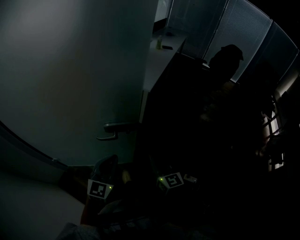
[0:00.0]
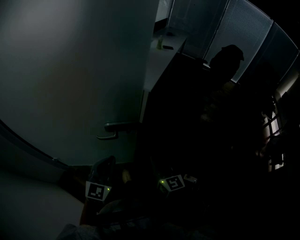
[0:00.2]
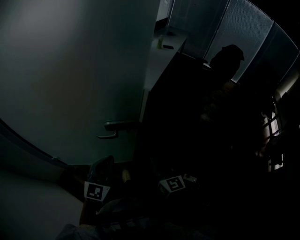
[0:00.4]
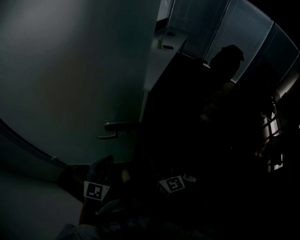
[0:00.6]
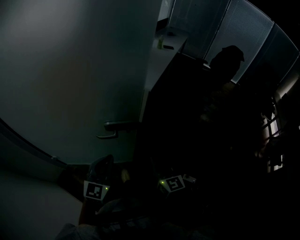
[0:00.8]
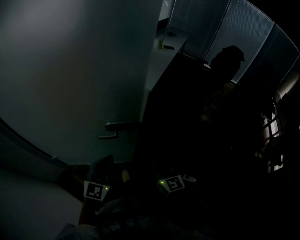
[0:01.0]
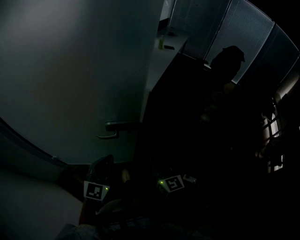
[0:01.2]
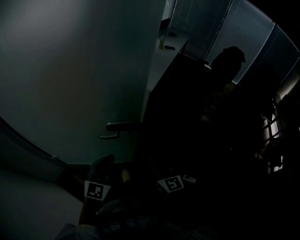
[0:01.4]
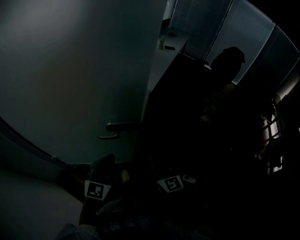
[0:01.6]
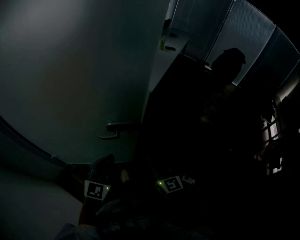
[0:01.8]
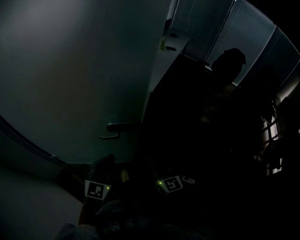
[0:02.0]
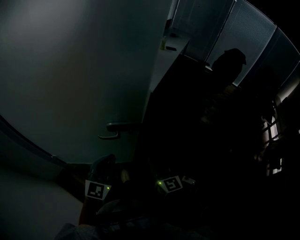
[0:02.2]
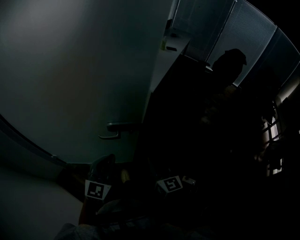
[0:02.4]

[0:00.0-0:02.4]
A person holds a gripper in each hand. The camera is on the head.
0:00.0 to 0:01.2: The grippers stay close to where they were, moving slightly.
0:01.2 to 0:02.4: The two grippers keep their place.

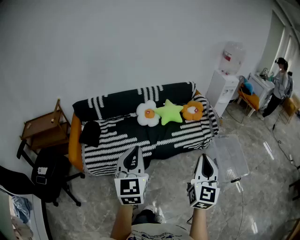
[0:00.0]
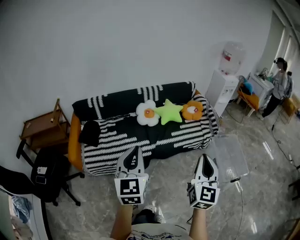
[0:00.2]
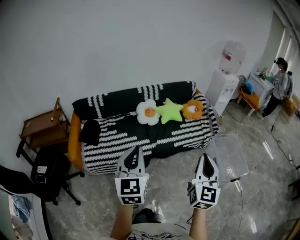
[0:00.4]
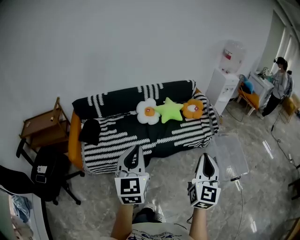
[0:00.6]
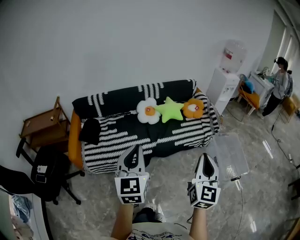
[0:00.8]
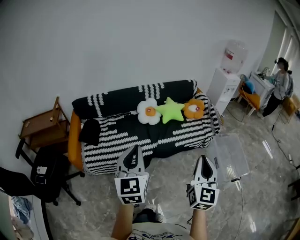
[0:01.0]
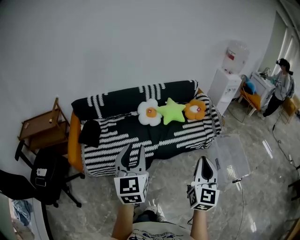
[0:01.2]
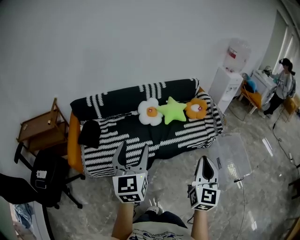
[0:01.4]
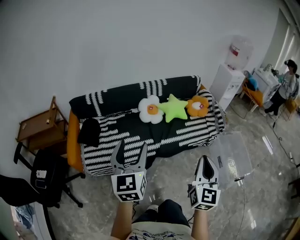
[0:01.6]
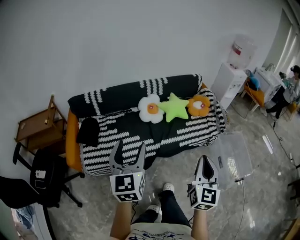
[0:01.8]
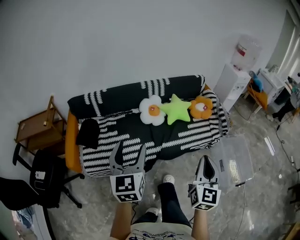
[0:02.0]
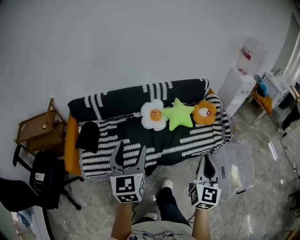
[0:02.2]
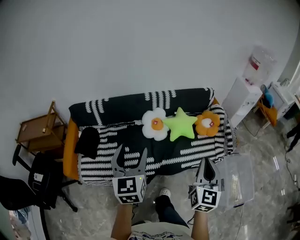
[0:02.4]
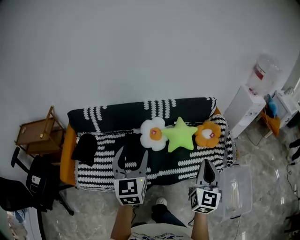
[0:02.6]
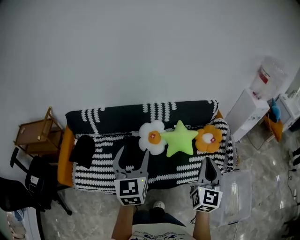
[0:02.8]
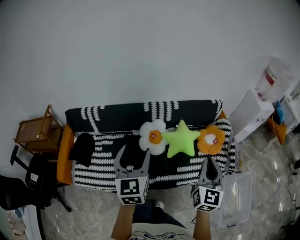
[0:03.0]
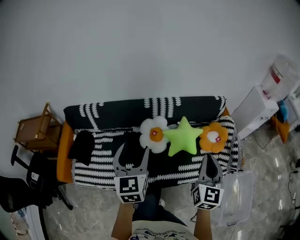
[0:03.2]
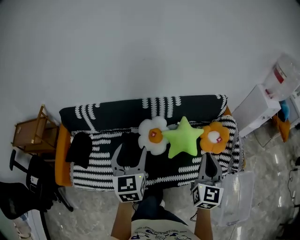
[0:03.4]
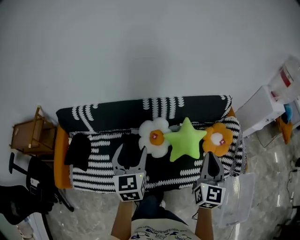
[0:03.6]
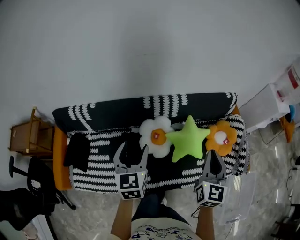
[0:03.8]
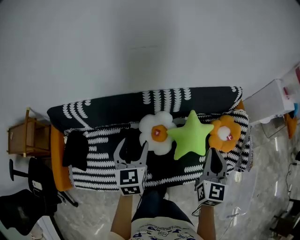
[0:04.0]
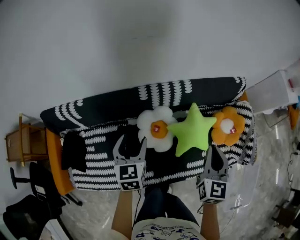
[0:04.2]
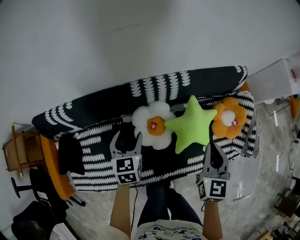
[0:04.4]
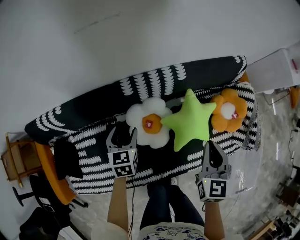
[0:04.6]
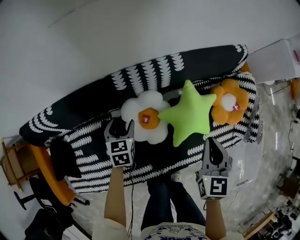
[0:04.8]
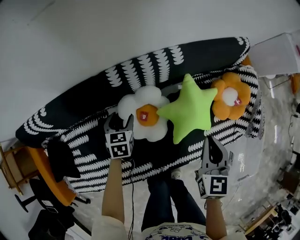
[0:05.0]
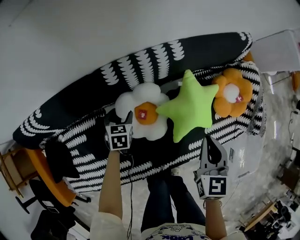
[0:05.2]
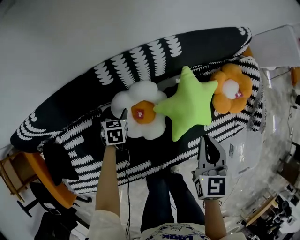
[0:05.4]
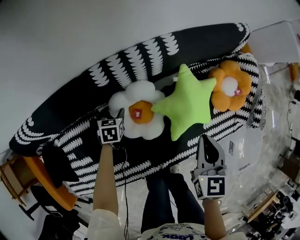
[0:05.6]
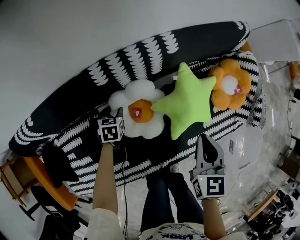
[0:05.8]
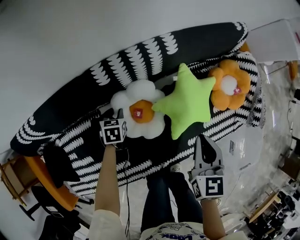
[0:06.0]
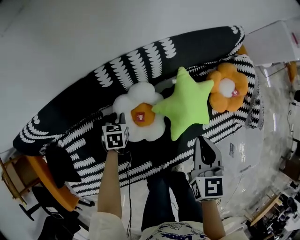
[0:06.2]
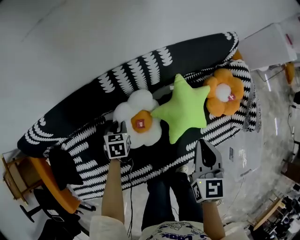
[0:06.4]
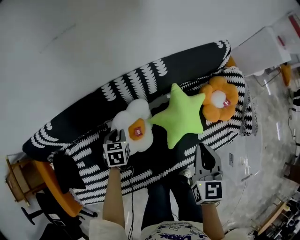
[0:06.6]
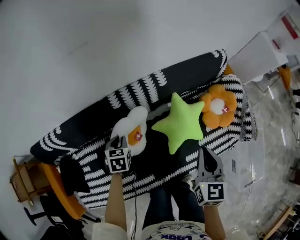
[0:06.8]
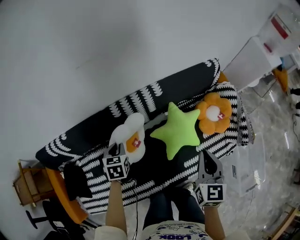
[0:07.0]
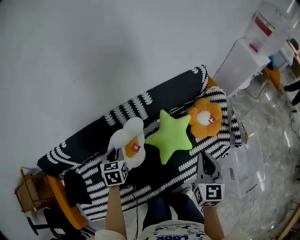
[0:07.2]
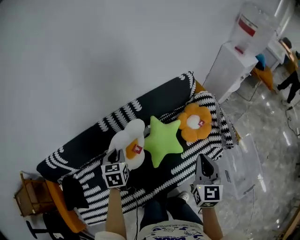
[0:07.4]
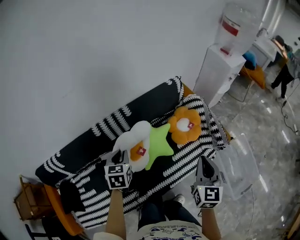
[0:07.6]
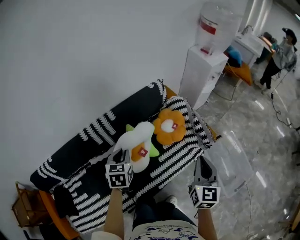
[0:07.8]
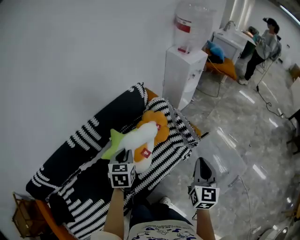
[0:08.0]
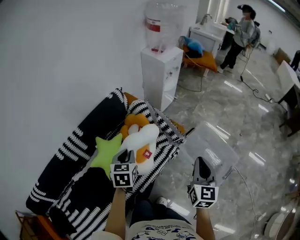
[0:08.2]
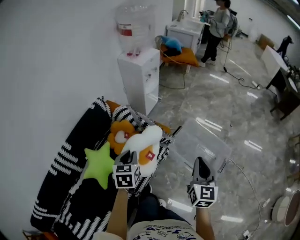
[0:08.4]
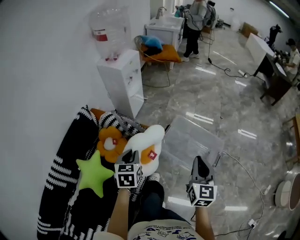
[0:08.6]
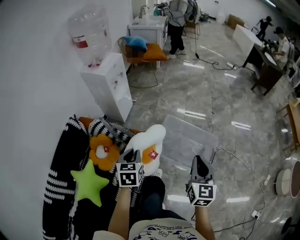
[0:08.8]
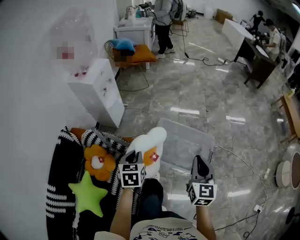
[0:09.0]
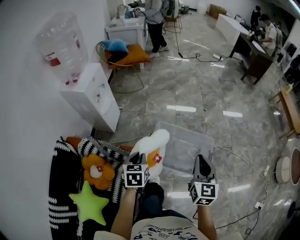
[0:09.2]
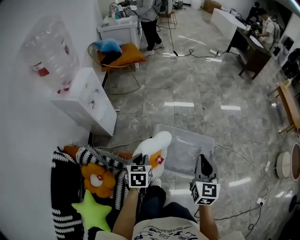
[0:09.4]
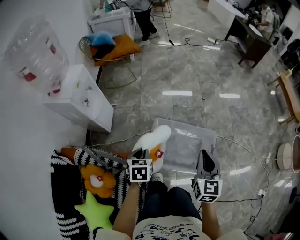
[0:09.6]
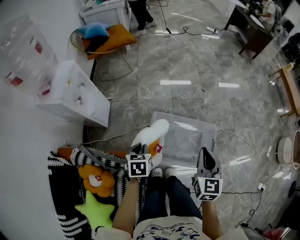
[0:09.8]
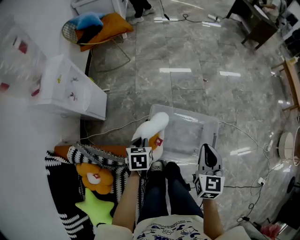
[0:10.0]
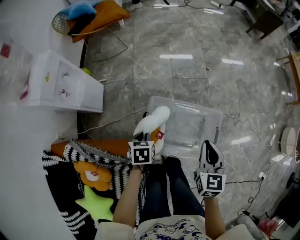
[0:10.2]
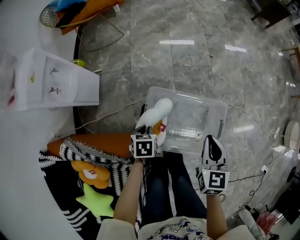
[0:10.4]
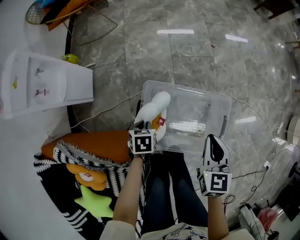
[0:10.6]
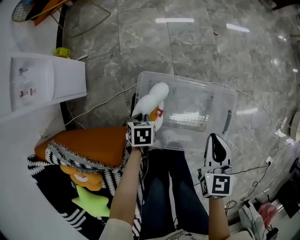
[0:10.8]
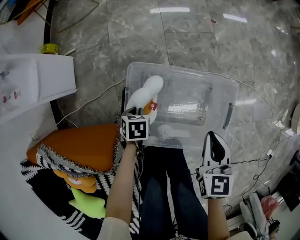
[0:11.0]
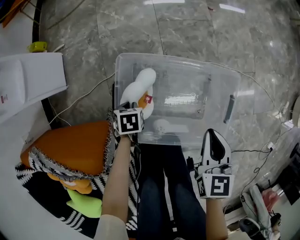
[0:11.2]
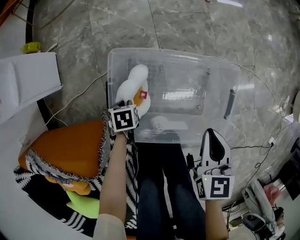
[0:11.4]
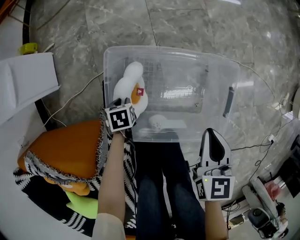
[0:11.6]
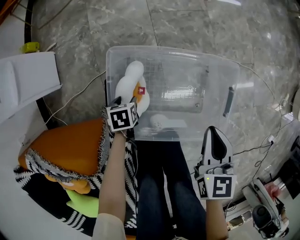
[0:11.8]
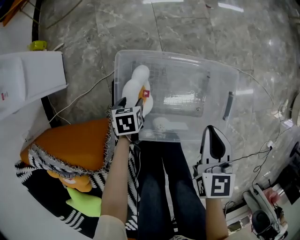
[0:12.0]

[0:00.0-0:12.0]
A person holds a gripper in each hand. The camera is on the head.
0:00.0 to 0:01.6: Both grippers travel together forward and to the left, roughly 10 cm. The left gripper opens its fingers.
0:01.6 to 0:03.0: The two grippers go approximately 40 cm forward.
0:03.0 to 0:04.4: Both grippers move forward and downward, some 40 cm. The left gripper changes its angle by approximately 30 degrees. The right gripper swivels about 20 degrees.
0:04.4 to 0:06.0: The left gripper is displaced downward by about 30 cm, turns by approximately 30 degrees, and closes its fingers. The right gripper travels downward by some 15 cm.
0:06.0 to 0:07.6: The left gripper goes some 50 cm upward and to the right, and rotates about 30 degrees. The right gripper goes some 40 cm to the right, upward and backward, and changes its angle by roughly 30 degrees.
0:07.6 to 0:09.0: Both grippers are carried approximately 60 cm. The left gripper changes its angle by some 50 degrees; the right gripper rotates some 50 degrees.
0:09.0 to 0:10.4: The grippers both shift forward and downward by some 40 cm. The right gripper changes its angle by roughly 20 degrees. The left gripper turns by about 30 degrees.
0:10.4 to 0:12.0: The two grippers go roughly 25 cm downward. The left gripper opens.

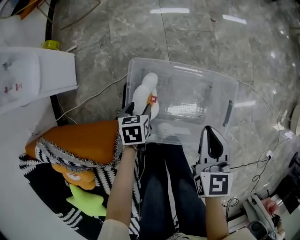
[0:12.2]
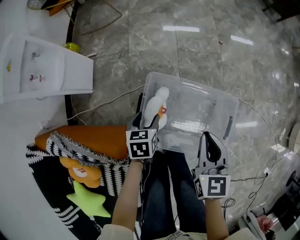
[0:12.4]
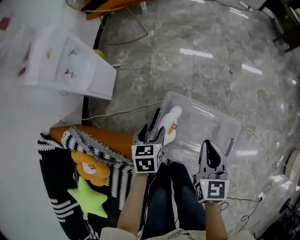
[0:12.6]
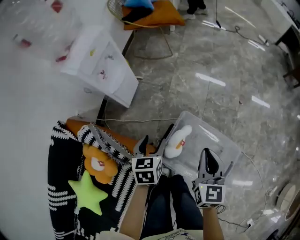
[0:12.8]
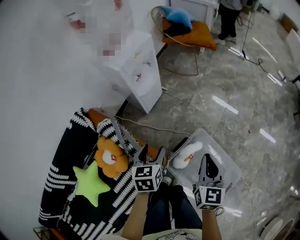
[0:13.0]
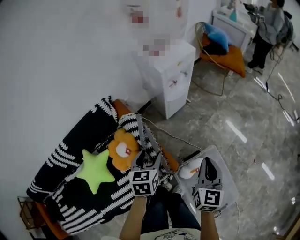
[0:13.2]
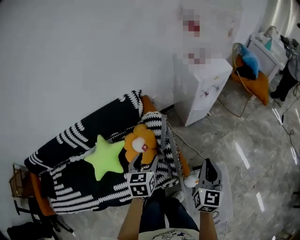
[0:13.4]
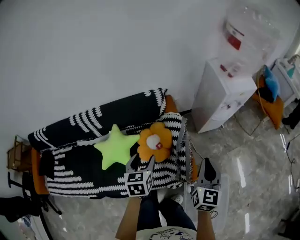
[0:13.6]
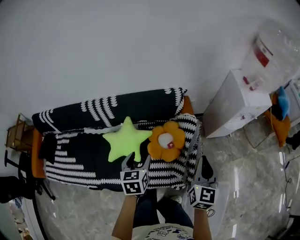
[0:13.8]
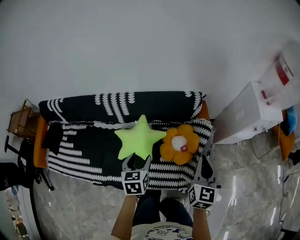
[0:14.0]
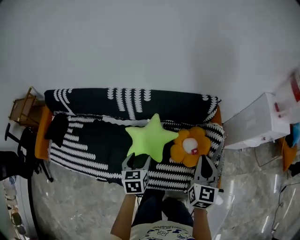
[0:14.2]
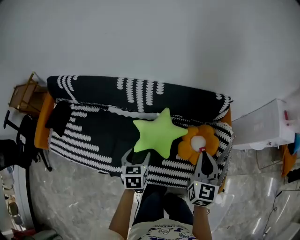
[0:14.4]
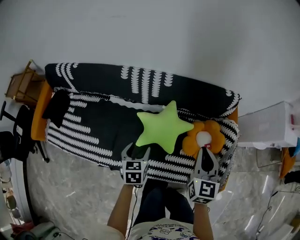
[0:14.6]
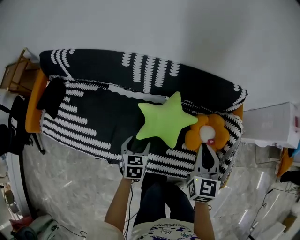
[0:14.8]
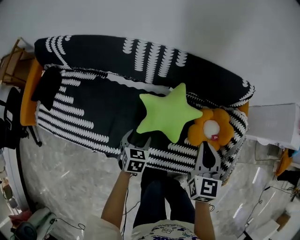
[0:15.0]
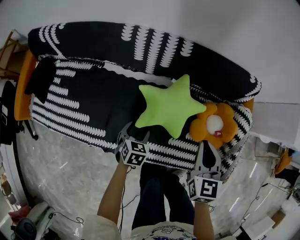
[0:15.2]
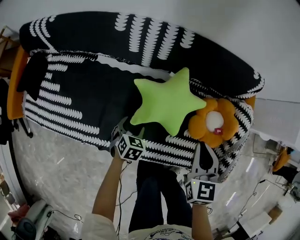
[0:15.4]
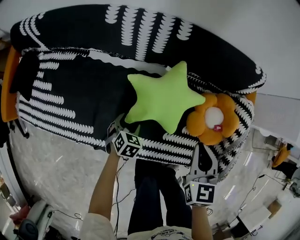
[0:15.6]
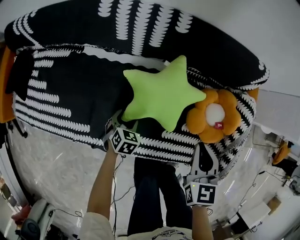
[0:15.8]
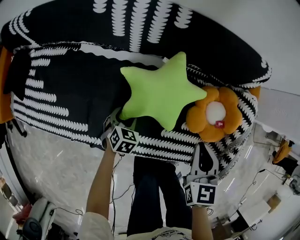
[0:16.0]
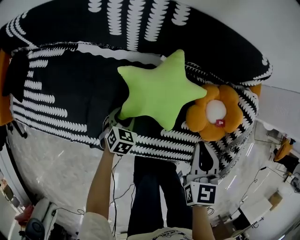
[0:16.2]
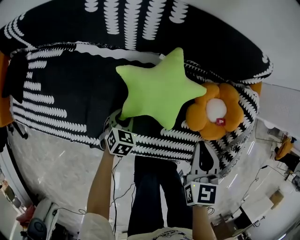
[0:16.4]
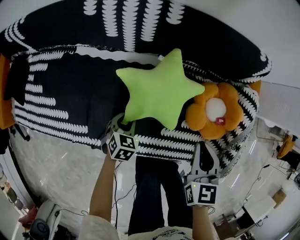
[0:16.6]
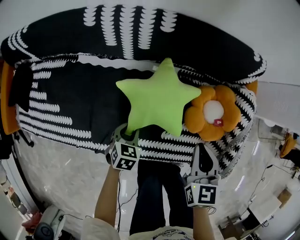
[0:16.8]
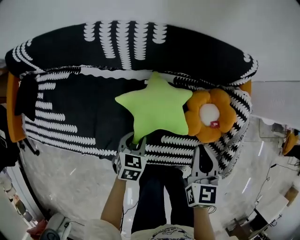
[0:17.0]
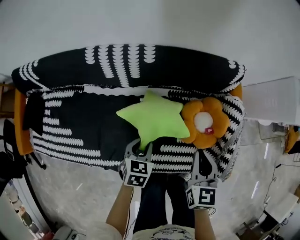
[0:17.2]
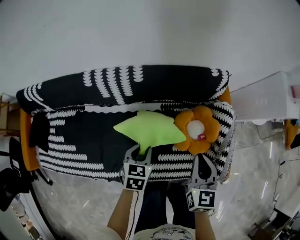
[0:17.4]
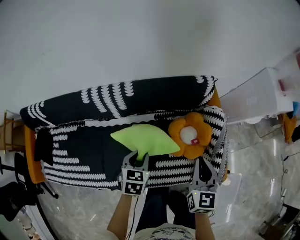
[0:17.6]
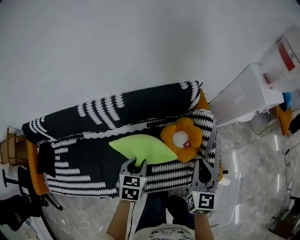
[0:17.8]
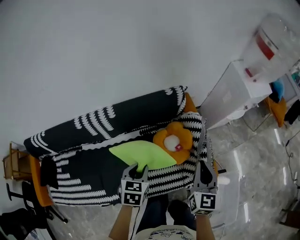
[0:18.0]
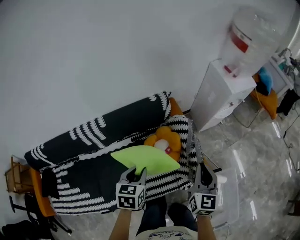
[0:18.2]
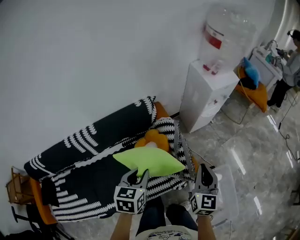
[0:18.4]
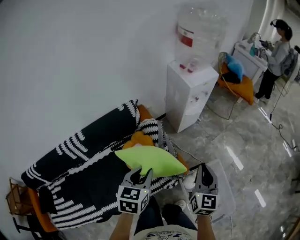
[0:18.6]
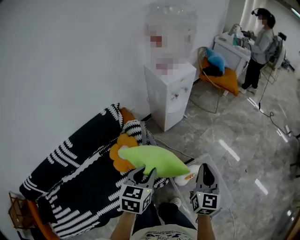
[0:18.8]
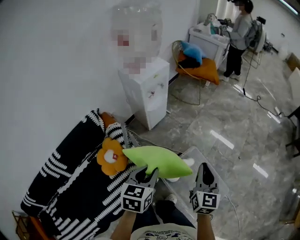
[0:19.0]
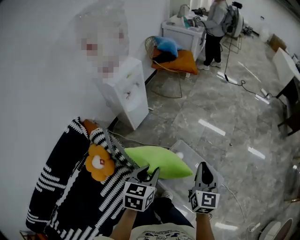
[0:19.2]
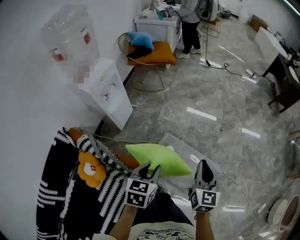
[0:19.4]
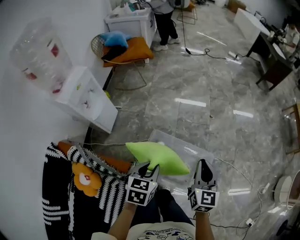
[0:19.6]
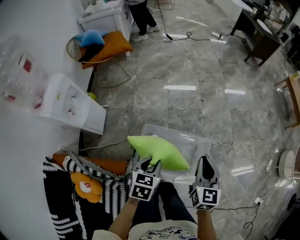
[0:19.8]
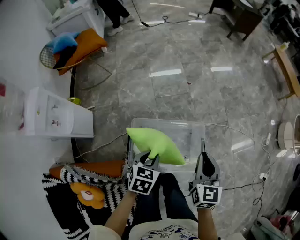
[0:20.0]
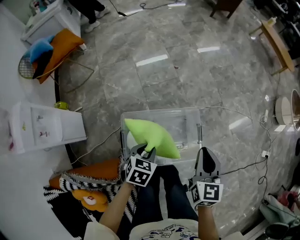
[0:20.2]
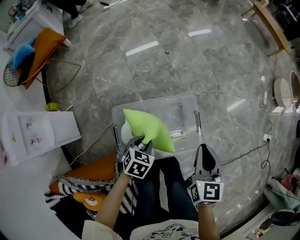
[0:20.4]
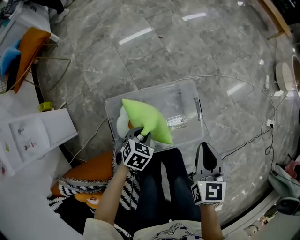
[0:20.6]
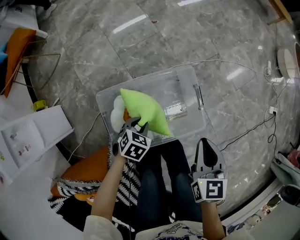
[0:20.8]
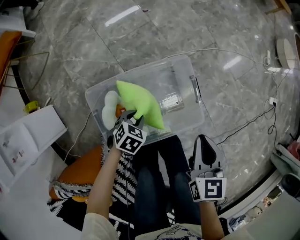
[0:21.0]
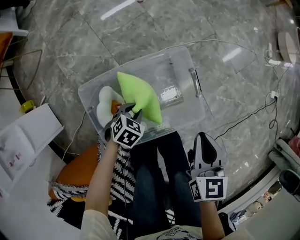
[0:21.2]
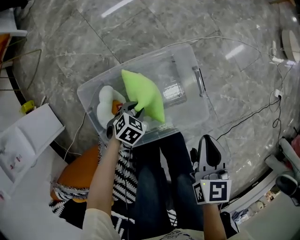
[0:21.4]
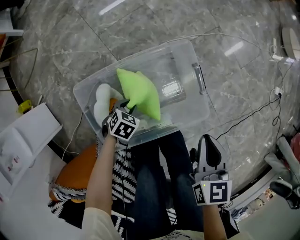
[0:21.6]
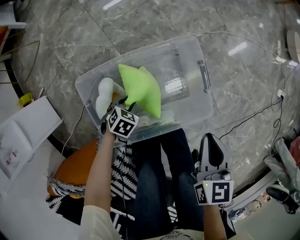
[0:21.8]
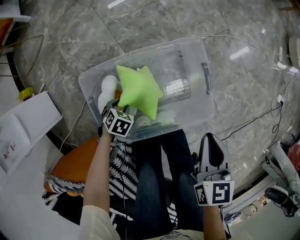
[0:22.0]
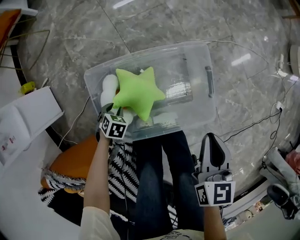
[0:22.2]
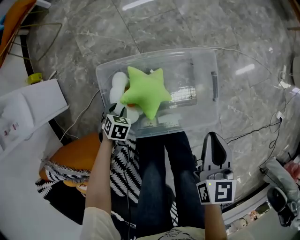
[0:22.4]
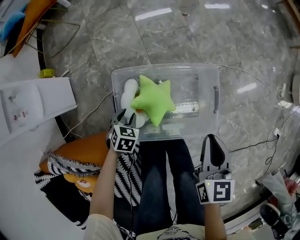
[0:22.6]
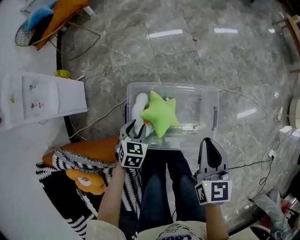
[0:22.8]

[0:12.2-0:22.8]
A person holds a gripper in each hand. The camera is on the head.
0:12.2 to 0:13.8: The two grippers travel together, some 60 cm. The right gripper changes its angle by approximately 80 degrees; the left gripper changes its angle by roughly 100 degrees.
0:13.8 to 0:15.2: Both grippers move to the left and downward, some 40 cm. The left gripper turns by approximately 20 degrees. The right gripper swivels approximately 30 degrees.
0:15.2 to 0:16.8: The two grippers go about 10 cm downward. The left gripper closes its fingers.
0:16.8 to 0:18.2: The right gripper shifts some 40 cm to the right and upward, and rotates about 40 degrees. The left gripper goes approximately 50 cm upward and to the right, and turns by about 20 degrees.
0:18.2 to 0:19.8: The pair of grippers is taken some 70 cm. The left gripper swivels approximately 80 degrees. Meanwhile the right gripper rotates about 70 degrees.
0:19.8 to 0:21.2: The left gripper moves downward, some 50 cm, and rotates approximately 60 degrees. Meanwhile the right gripper heads downward, covering approximately 30 cm, and changes its angle by approximately 30 degrees.
0:21.2 to 0:22.8: The two grippers go about 15 cm upward. The right gripper changes its angle by approximately 30 degrees, while the left gripper rotates roughly 40 degrees.
